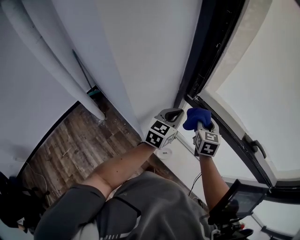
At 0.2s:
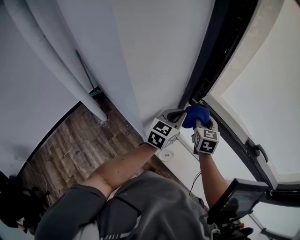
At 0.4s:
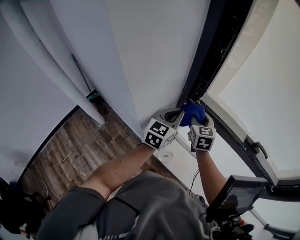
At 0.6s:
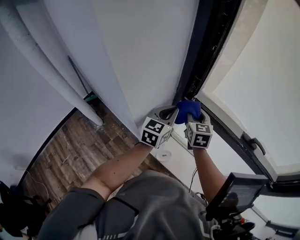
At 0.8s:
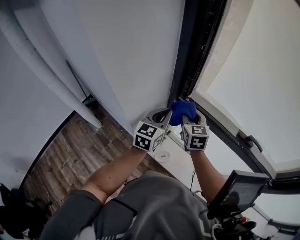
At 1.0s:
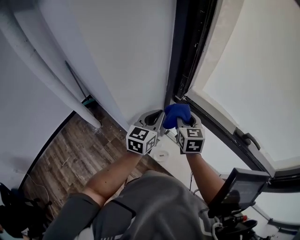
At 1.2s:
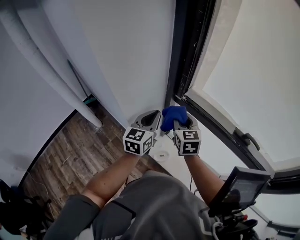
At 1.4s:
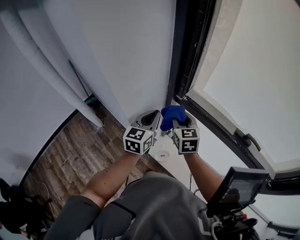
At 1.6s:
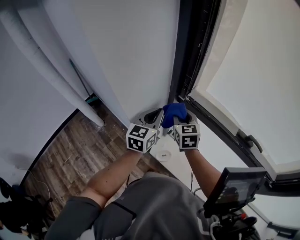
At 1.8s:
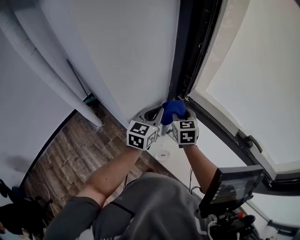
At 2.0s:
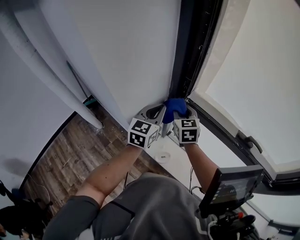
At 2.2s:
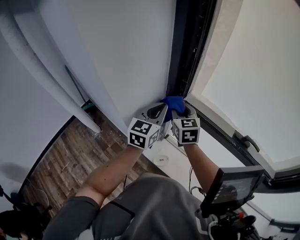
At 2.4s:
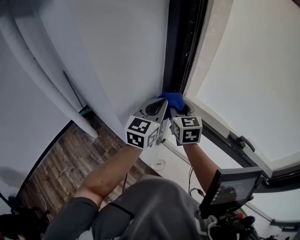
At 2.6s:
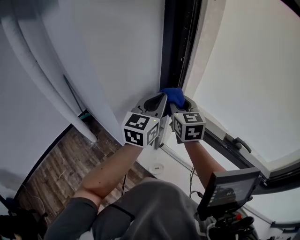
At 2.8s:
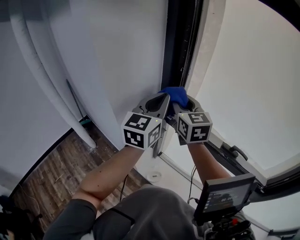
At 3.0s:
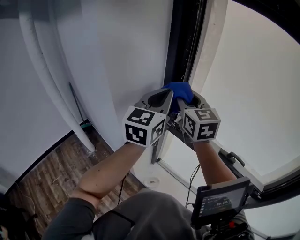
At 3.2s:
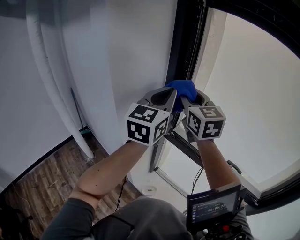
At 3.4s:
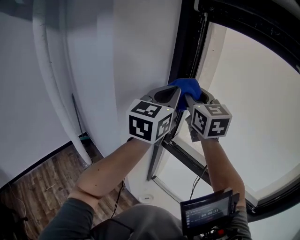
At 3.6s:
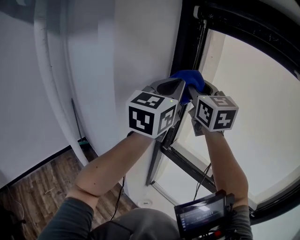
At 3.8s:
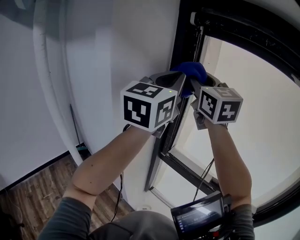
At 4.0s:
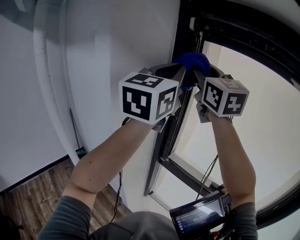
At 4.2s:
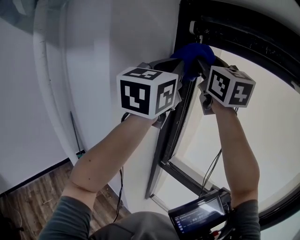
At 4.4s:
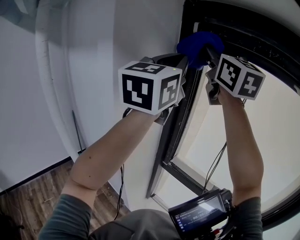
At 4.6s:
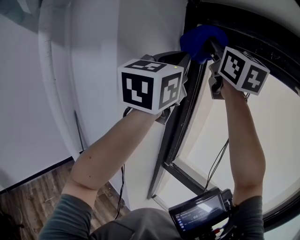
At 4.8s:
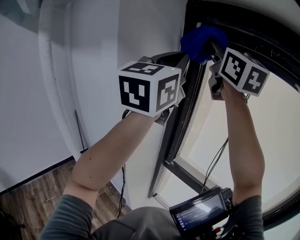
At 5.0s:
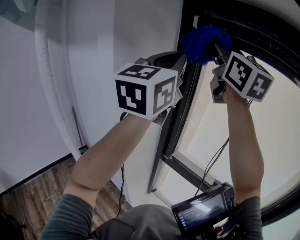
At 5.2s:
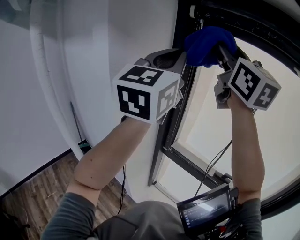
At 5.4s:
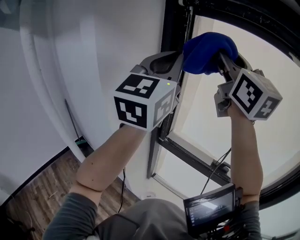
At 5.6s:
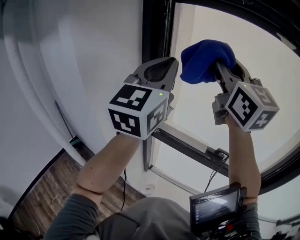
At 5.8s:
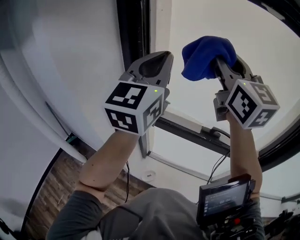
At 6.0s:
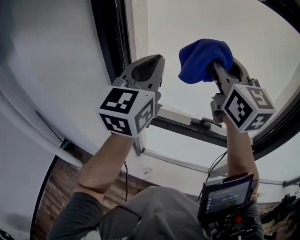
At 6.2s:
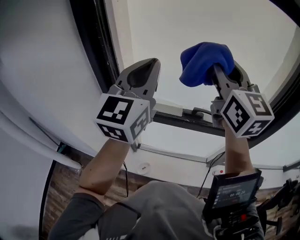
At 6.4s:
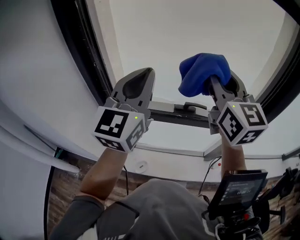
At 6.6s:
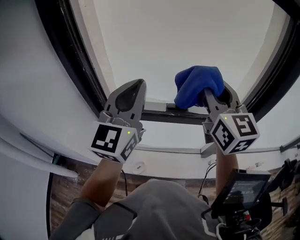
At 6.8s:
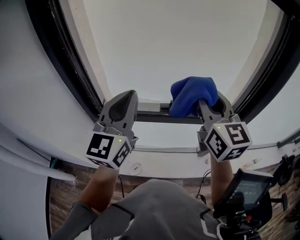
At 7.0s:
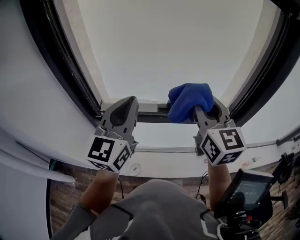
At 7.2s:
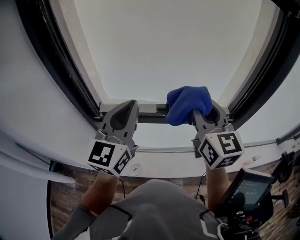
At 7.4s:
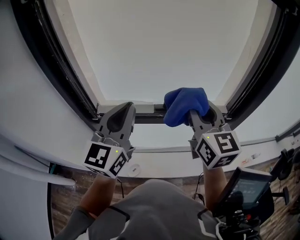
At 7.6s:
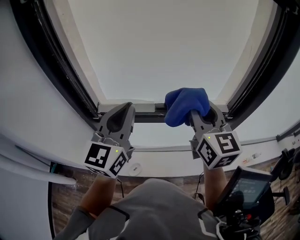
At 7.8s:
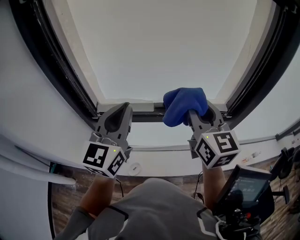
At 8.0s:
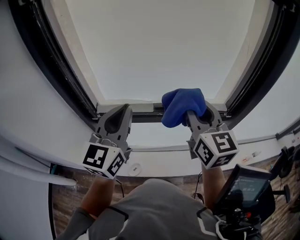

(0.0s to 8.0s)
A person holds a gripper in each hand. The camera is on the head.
0.0s - 1.6s: The right gripper moves to the left, approximately 10 cm. The left gripper moves to the left, some 5 cm.
1.6s - 3.2s: The grippers both shift upward by some 35 cm. The left gripper swivels about 20 degrees. The right gripper turns by roughly 30 degrees.
3.2s - 4.8s: Both grippers travel together upward, roughly 30 cm. The right gripper rotates about 30 degrees.
4.8s - 6.4s: The left gripper shifts approximately 25 cm downward, and changes its angle by roughly 20 degrees, while the right gripper ends up roughly 50 cm from where it was, and changes its angle by roughly 40 degrees.
6.4s - 8.0s: Both grippers travel together downward, about 10 cm.

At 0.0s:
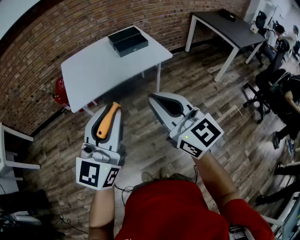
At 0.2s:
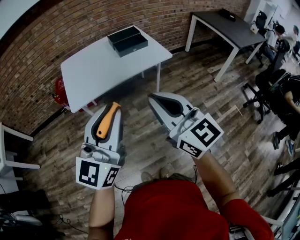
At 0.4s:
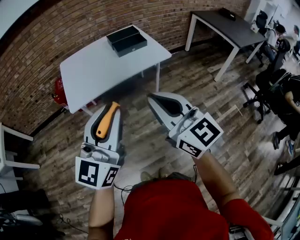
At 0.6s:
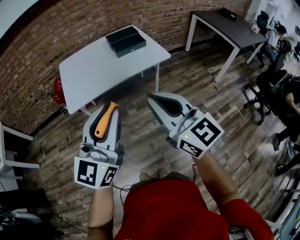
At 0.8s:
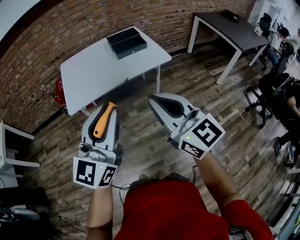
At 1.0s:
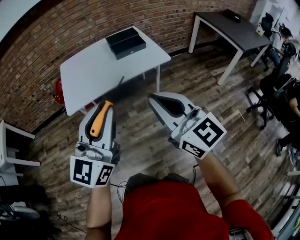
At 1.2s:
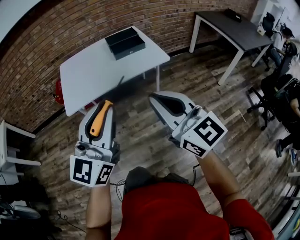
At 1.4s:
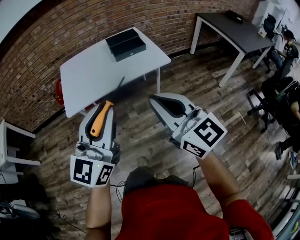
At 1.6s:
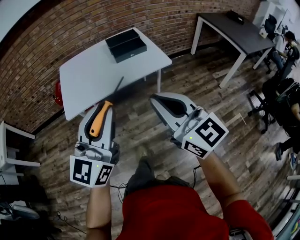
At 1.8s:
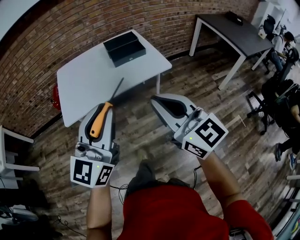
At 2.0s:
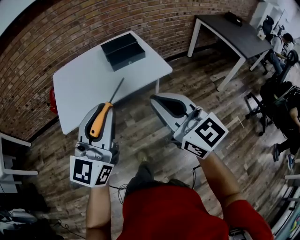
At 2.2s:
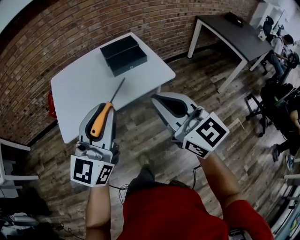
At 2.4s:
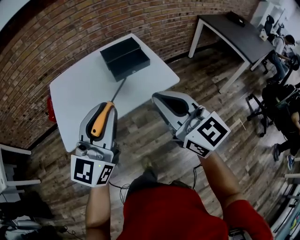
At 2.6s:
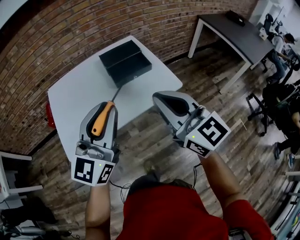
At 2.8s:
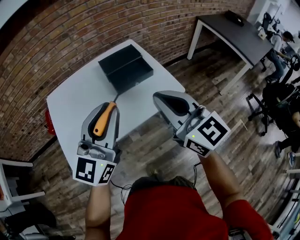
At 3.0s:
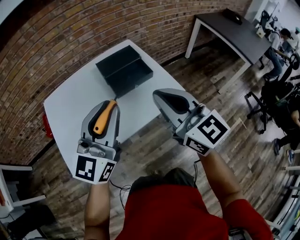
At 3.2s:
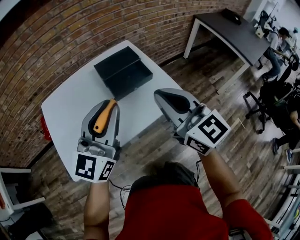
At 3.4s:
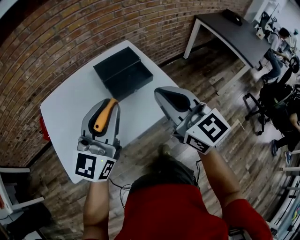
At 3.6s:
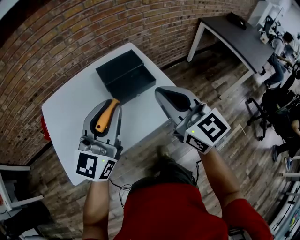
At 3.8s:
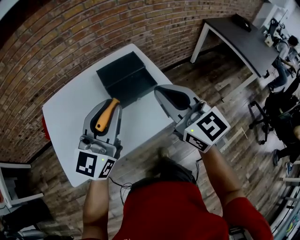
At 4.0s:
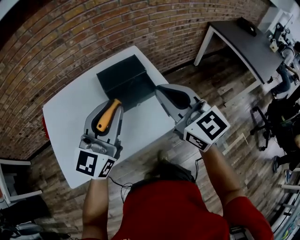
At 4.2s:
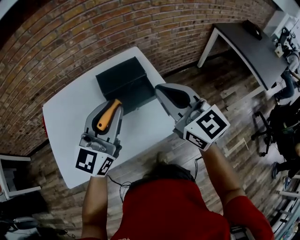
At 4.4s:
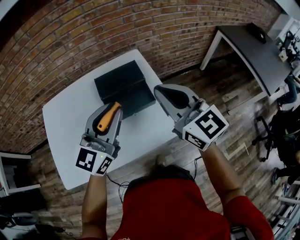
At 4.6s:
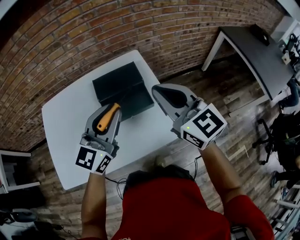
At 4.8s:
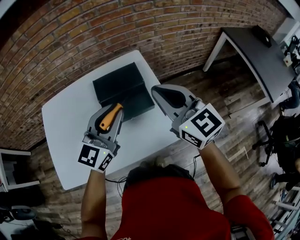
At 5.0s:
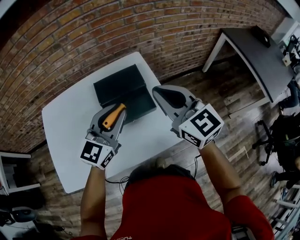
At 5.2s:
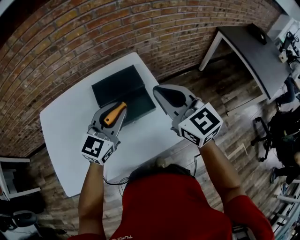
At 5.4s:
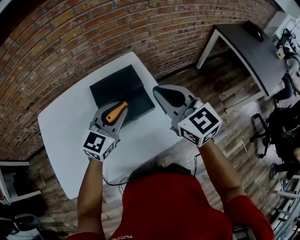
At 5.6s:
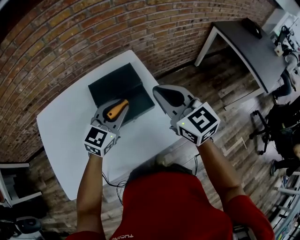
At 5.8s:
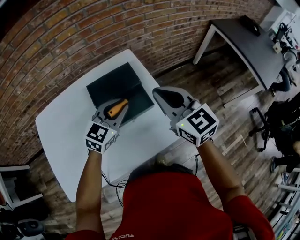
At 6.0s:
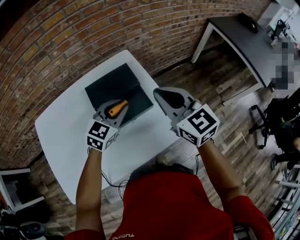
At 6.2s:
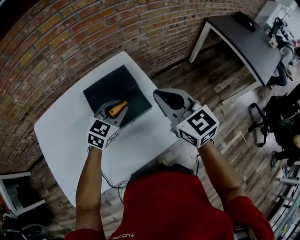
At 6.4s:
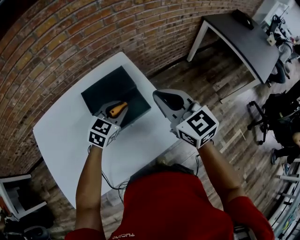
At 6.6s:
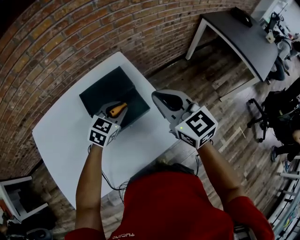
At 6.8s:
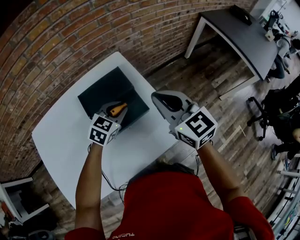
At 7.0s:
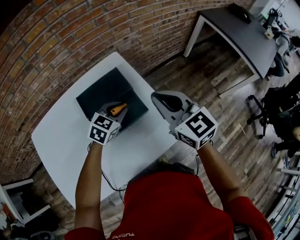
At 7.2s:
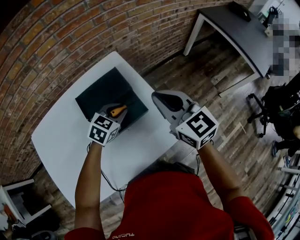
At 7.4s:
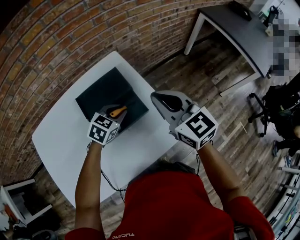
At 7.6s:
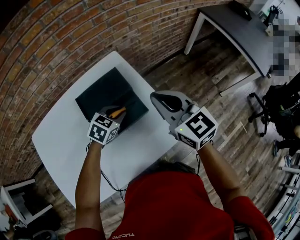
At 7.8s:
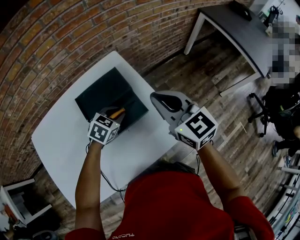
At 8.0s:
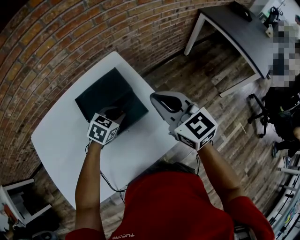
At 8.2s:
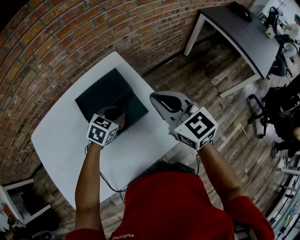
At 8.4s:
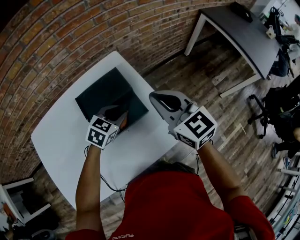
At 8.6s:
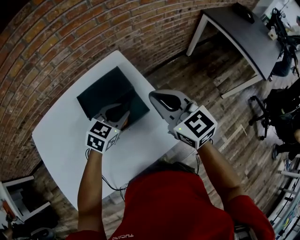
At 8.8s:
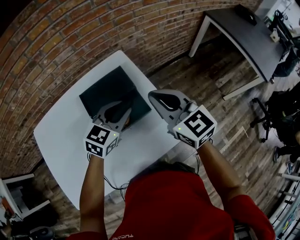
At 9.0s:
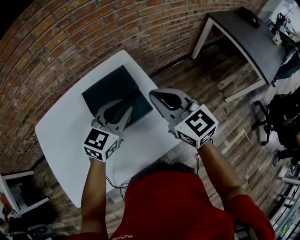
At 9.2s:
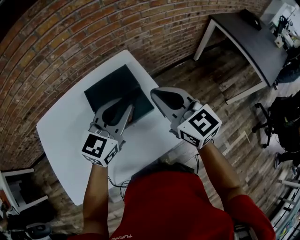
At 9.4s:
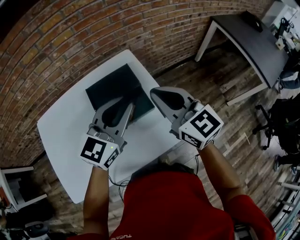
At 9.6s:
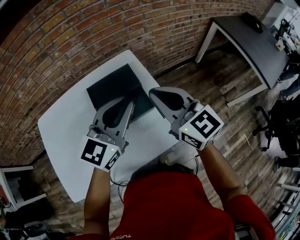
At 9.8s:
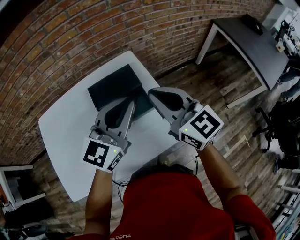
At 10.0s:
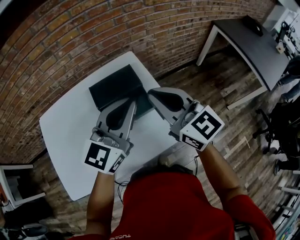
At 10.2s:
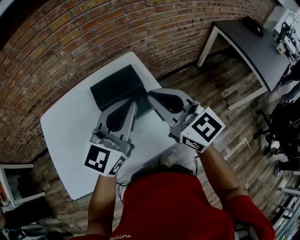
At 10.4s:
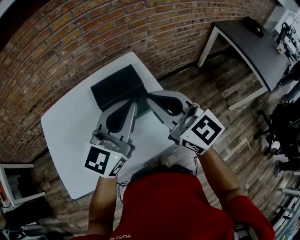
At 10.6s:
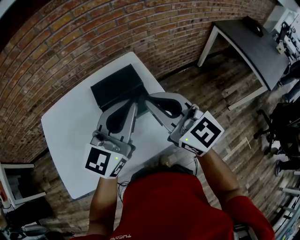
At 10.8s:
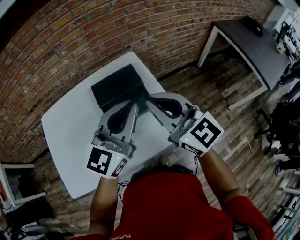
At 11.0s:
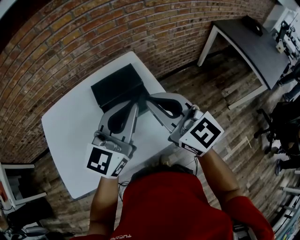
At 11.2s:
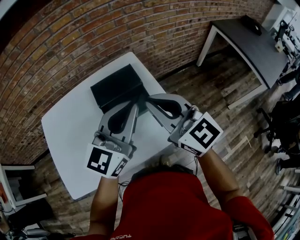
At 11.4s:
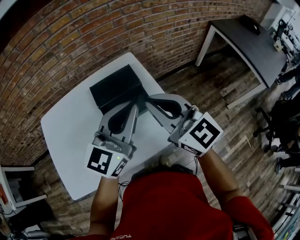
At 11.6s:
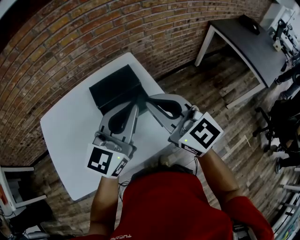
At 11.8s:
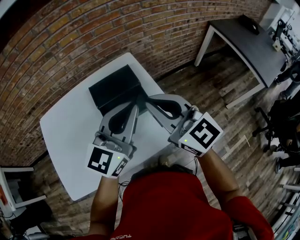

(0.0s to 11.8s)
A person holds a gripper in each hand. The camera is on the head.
0.0s - 1.4s: The grippers both shift to the right by about 10 cm.
1.4s - 3.0s: The grippers both shift forward by approximately 35 cm.
3.0s - 4.4s: The right gripper shifts about 20 cm forward. Meanwhile the left gripper travels forward and to the right by some 20 cm.
4.4s - 6.0s: The left gripper heads downward and forward, covering some 20 cm, and rotates about 30 degrees. The right gripper shifts approximately 10 cm downward and forward.
6.0s - 7.4s: The left gripper travels downward by about 10 cm, and rotates approximately 20 degrees.
7.4s - 8.8s: The left gripper travels upward by some 10 cm.
8.8s - 10.4s: The right gripper goes some 10 cm upward and backward. The left gripper moves upward and backward, approximately 20 cm, points its fingers roughly 30 degrees further upward, and closes.
10.4s - 11.8s: There are only small adjustments of the grippers.

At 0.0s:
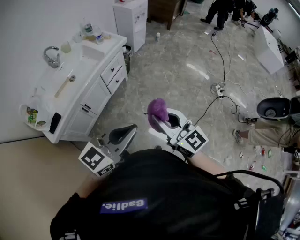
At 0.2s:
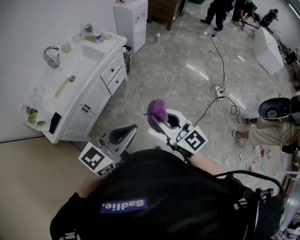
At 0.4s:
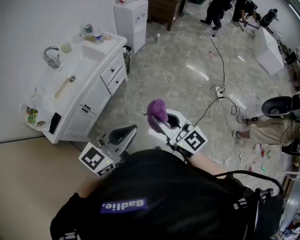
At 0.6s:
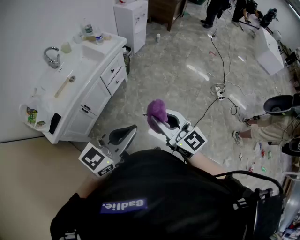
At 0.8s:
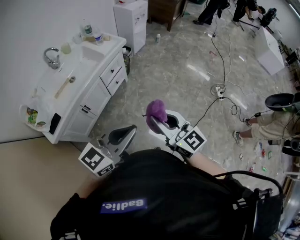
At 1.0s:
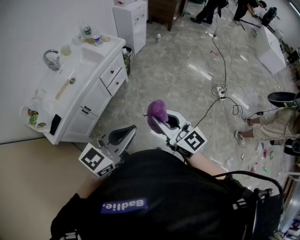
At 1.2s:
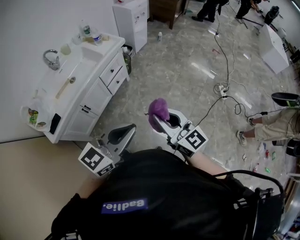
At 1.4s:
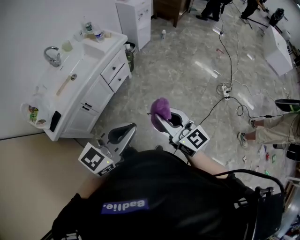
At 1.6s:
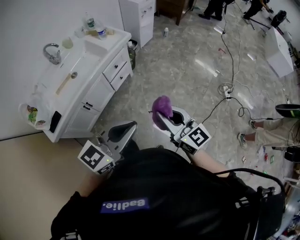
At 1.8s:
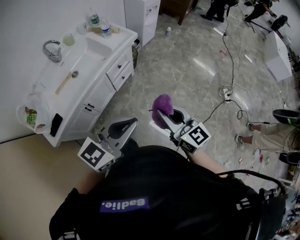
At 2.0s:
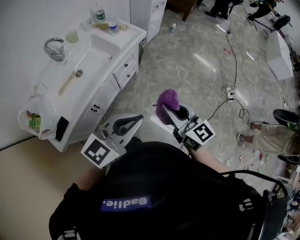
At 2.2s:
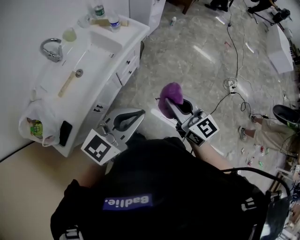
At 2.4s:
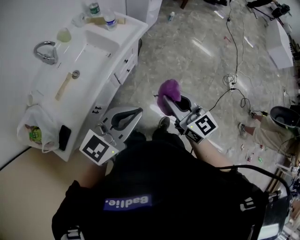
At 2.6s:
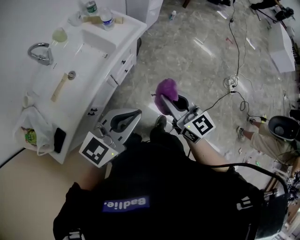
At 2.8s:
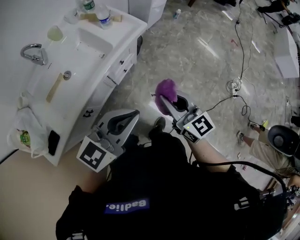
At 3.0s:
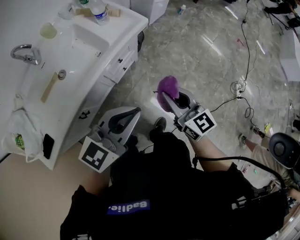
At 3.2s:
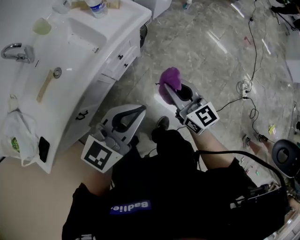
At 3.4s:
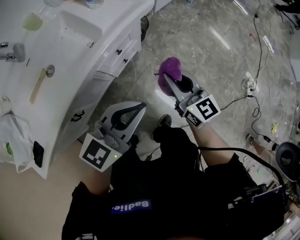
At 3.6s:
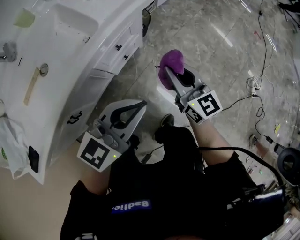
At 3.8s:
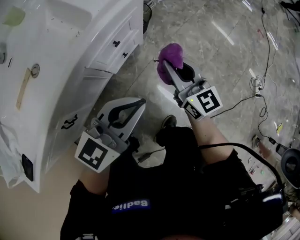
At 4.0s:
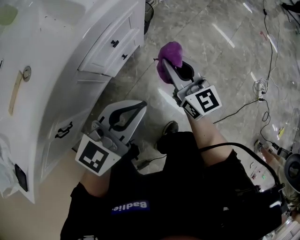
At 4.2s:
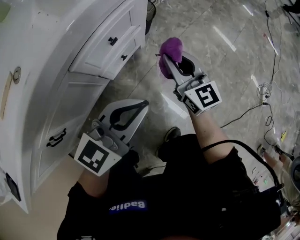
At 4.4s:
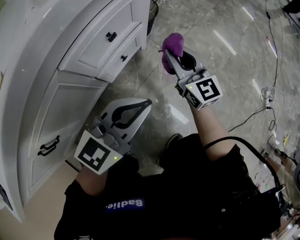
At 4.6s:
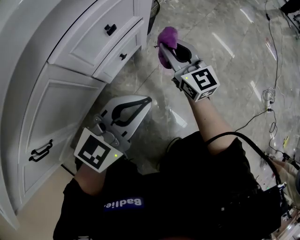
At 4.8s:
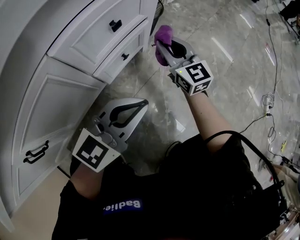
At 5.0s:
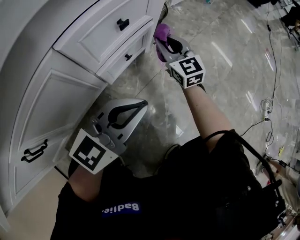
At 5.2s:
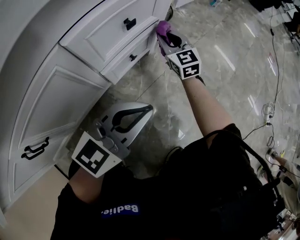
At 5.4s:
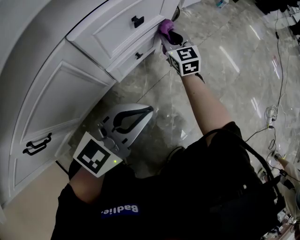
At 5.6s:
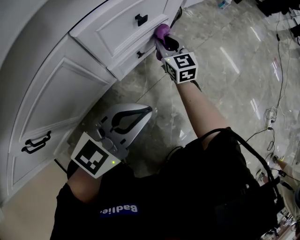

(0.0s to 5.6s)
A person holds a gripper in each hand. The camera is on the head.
0.0s - 1.4s: The right gripper moves to the right, about 5 cm. Meanwhile the left gripper moves some 5 cm.
1.4s - 2.8s: The right gripper is displaced forward, to the left and downward by roughly 35 cm; the left gripper travels forward and to the left by roughly 35 cm.
2.8s - 4.2s: The right gripper shifts about 50 cm downward and forward. Meanwhile the left gripper goes about 40 cm downward.
4.2s - 5.6s: The right gripper goes approximately 25 cm downward, to the left and forward, while the left gripper moves downward, some 15 cm.
